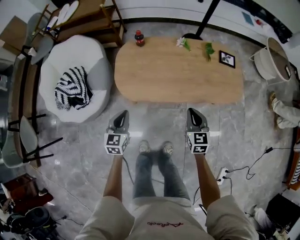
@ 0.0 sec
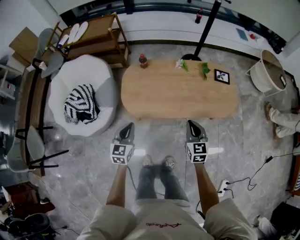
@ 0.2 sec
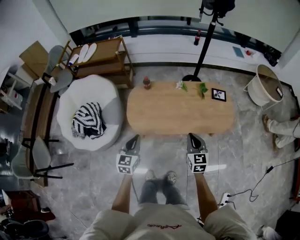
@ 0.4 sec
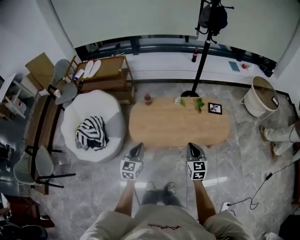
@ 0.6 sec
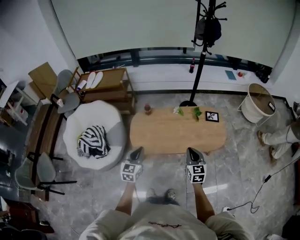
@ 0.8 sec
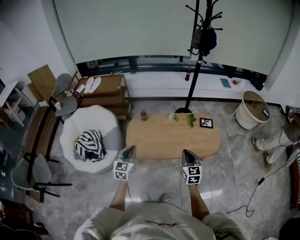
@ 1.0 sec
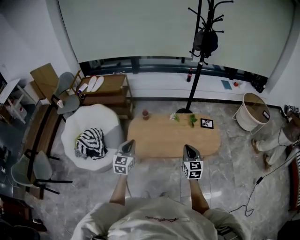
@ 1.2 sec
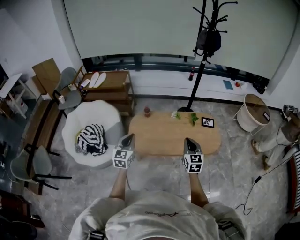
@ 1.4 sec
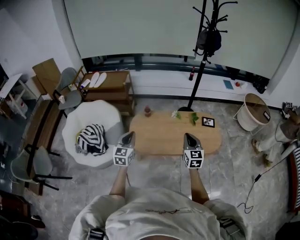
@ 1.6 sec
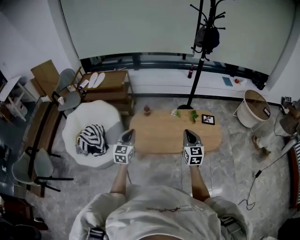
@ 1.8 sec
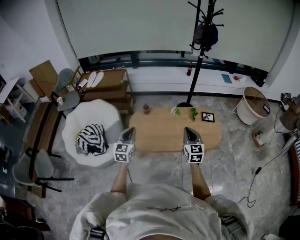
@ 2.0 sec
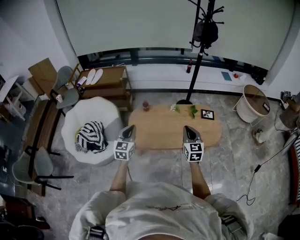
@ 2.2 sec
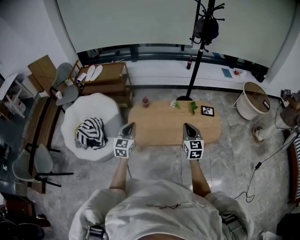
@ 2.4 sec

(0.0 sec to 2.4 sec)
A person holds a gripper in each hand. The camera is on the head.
0.0 sec - 1.2 sec: The grippers both shift upward by some 30 cm.
1.2 sec - 2.4 sec: The right gripper changes place by approximately 5 cm.

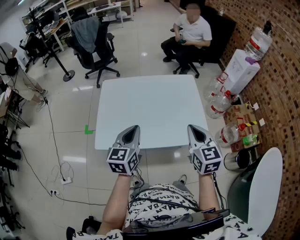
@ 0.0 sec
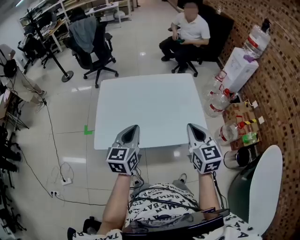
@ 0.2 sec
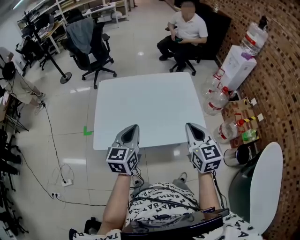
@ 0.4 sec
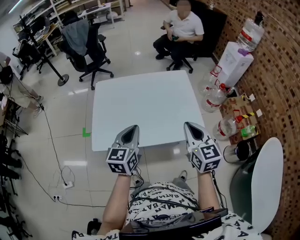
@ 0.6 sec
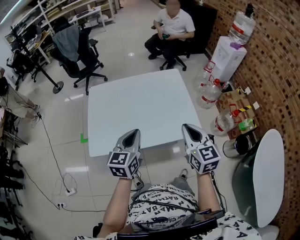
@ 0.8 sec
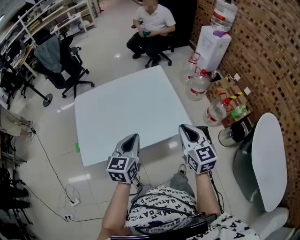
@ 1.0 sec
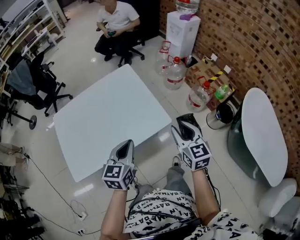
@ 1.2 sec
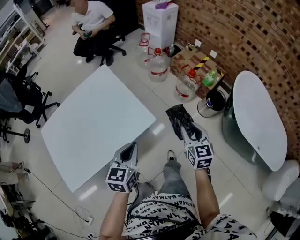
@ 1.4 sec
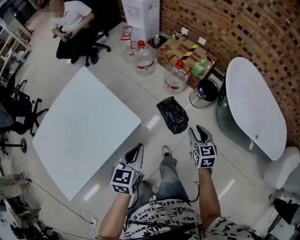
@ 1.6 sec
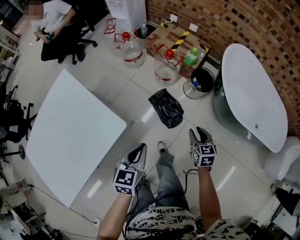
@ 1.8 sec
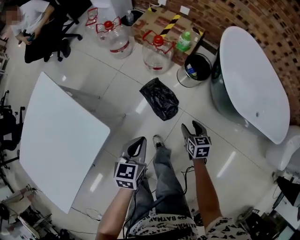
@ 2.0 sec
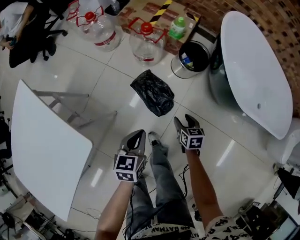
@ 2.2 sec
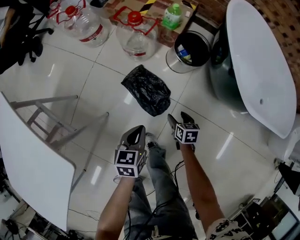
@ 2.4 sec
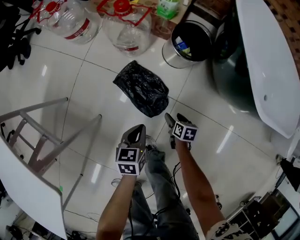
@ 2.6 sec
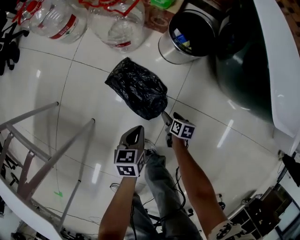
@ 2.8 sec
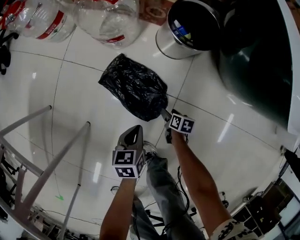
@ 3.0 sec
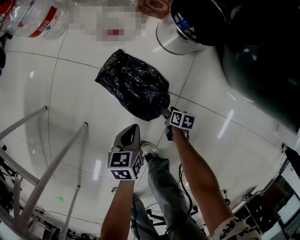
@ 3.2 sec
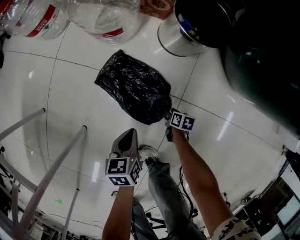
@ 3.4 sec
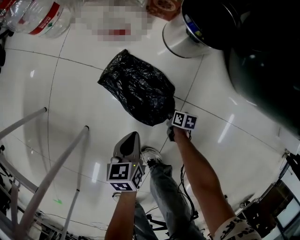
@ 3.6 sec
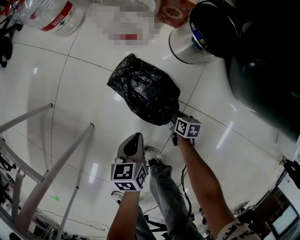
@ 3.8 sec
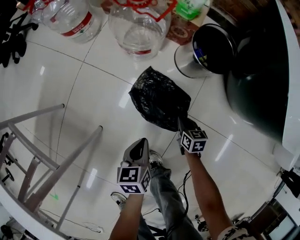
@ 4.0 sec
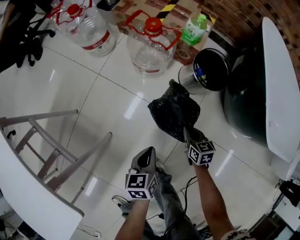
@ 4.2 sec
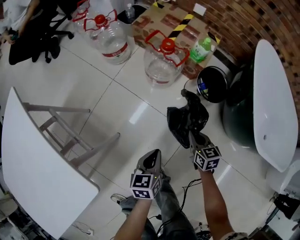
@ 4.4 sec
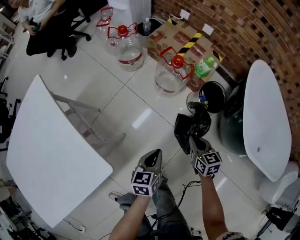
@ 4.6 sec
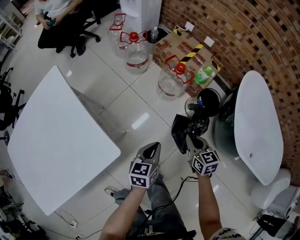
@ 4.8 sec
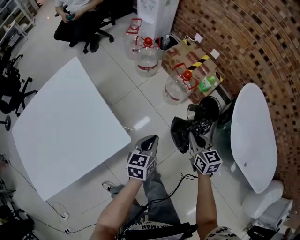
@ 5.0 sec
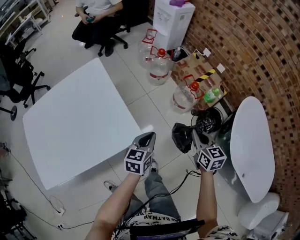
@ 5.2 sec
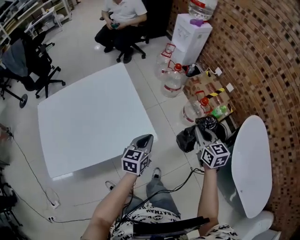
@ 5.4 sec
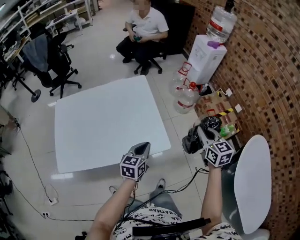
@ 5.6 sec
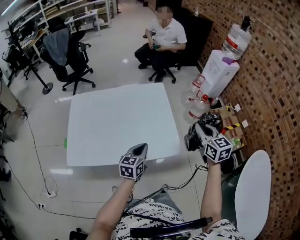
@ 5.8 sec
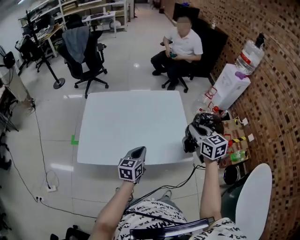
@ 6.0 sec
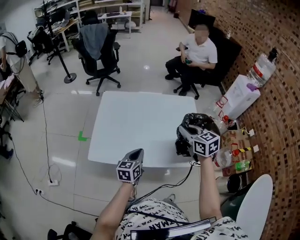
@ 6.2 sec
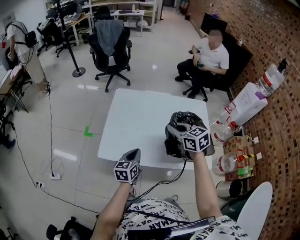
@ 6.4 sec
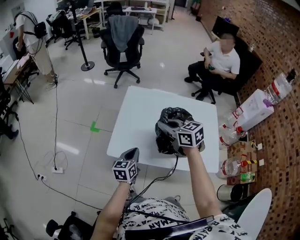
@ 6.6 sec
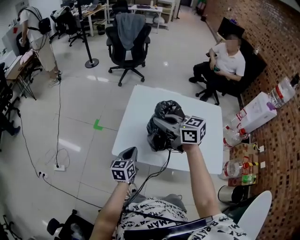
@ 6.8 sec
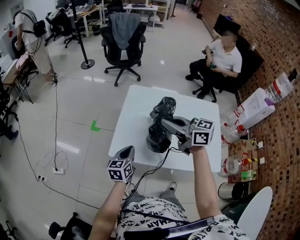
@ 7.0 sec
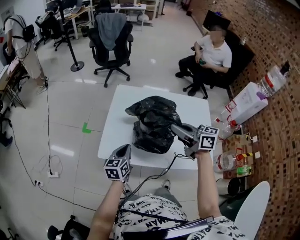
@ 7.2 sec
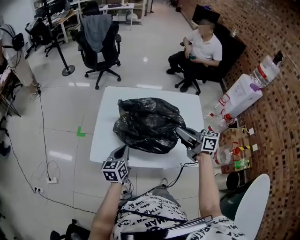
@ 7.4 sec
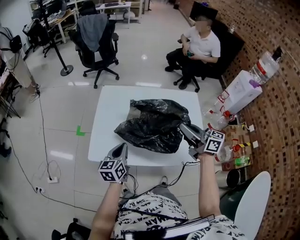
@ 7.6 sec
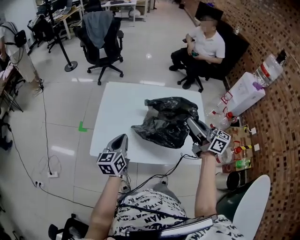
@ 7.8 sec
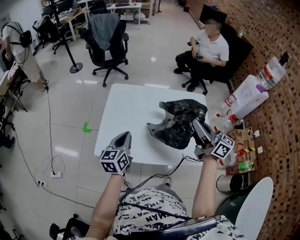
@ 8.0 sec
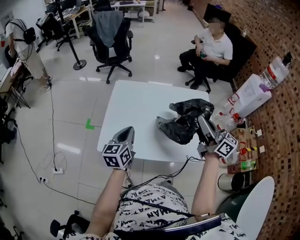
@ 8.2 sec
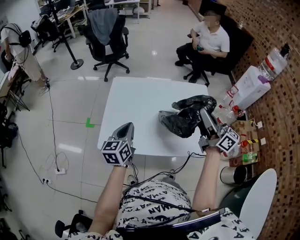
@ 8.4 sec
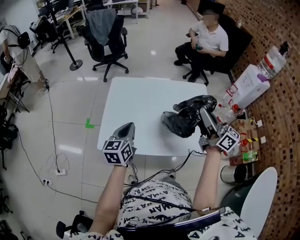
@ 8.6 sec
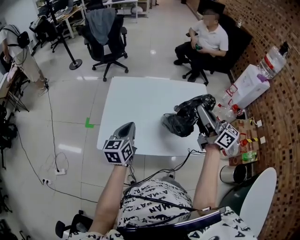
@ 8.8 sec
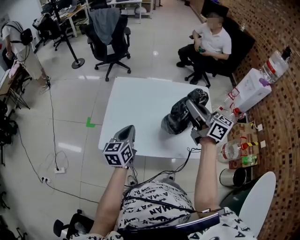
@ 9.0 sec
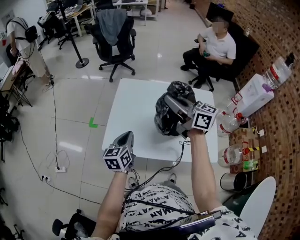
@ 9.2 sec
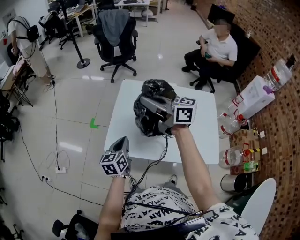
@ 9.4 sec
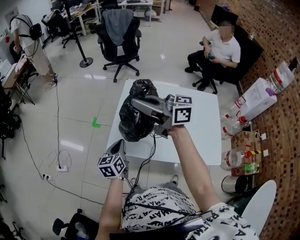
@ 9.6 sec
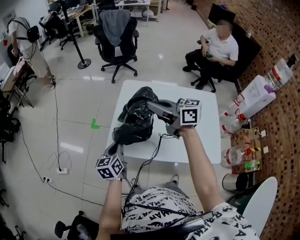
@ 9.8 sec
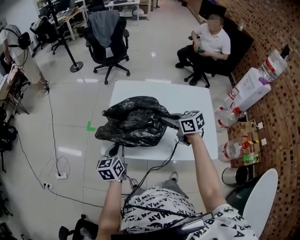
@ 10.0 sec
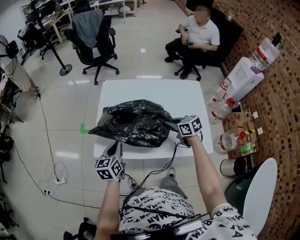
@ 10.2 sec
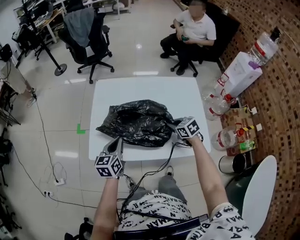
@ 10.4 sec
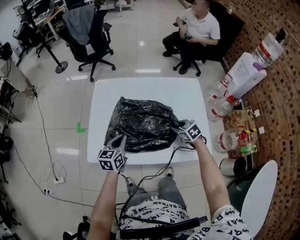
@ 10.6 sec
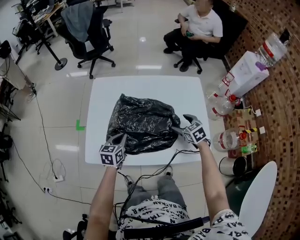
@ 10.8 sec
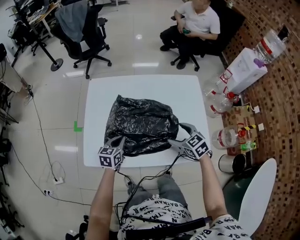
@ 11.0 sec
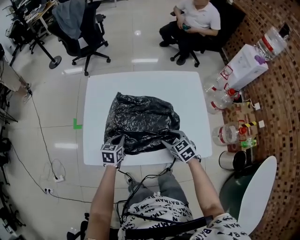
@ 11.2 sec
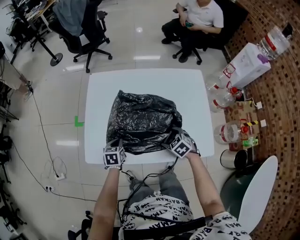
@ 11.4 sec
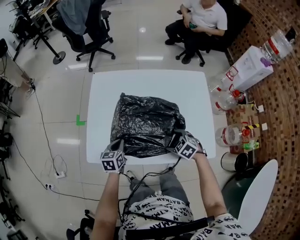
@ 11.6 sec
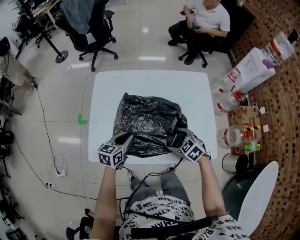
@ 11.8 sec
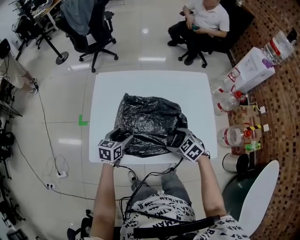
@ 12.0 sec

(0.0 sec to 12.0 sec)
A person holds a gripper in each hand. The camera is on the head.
0.0 sec - 1.6 sec: The left gripper moves approximately 40 cm, and rotates approximately 50 degrees, while the right gripper changes place by roughly 50 cm, changes its angle by roughly 50 degrees, and opens.
1.6 sec - 3.0 sec: The grippers both shift downward by roughly 60 cm. The right gripper twists some 60 degrees clockwise, seen from behind, and opens its fingers; the left gripper changes its angle by approximately 30 degrees.
3.0 sec - 4.4 sec: The right gripper shifts about 35 cm upward, twists approximately 50 degrees counterclockwise, seen from behind, and closes its fingers; the left gripper moves upward, some 20 cm, and turns by about 20 degrees.
4.4 sec - 6.0 sec: Both grippers are carried roughly 50 cm. The right gripper is displaced upward by some 50 cm, and turns by approximately 60 degrees, while the left gripper swivels some 50 degrees.
6.0 sec - 7.6 sec: The left gripper moves approximately 20 cm, while the right gripper goes up and down, roughly 10 cm each way, reversing 2 times, and turns by some 50 degrees.
7.6 sec - 9.0 sec: The left gripper changes place by about 5 cm; the right gripper heads upward, covering approximately 5 cm.
9.0 sec - 10.4 sec: The left gripper heads downward, covering some 5 cm, and reaches some 15 cm to the left, then returns. The right gripper heads downward, covering some 30 cm, and angles its fingers downward, by about 50 degrees.
10.4 sec - 12.0 sec: The right gripper goes up and down, about 10 cm each way, reversing 3 times, and opens up, while the left gripper is displaced downward and forward by some 10 cm, turns by about 20 degrees, and opens.

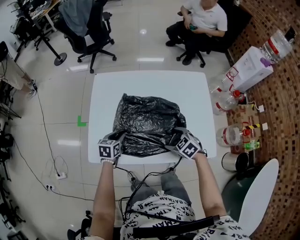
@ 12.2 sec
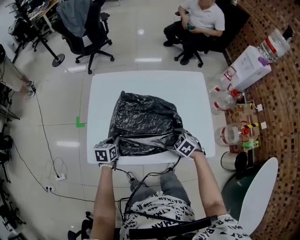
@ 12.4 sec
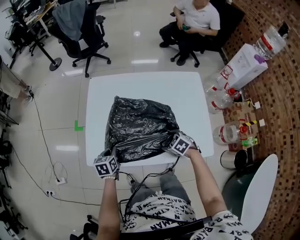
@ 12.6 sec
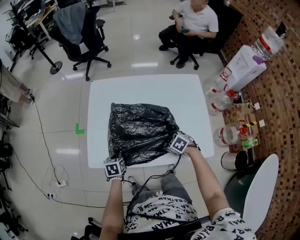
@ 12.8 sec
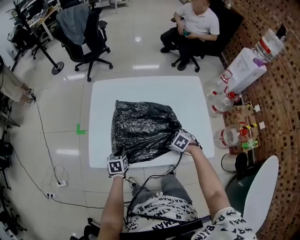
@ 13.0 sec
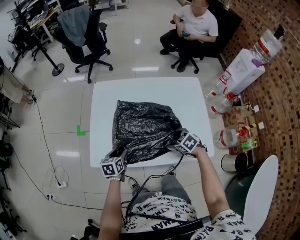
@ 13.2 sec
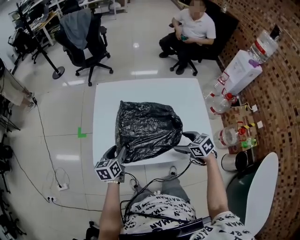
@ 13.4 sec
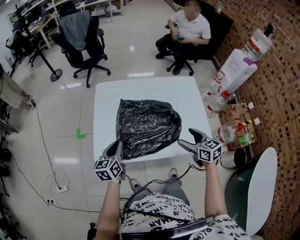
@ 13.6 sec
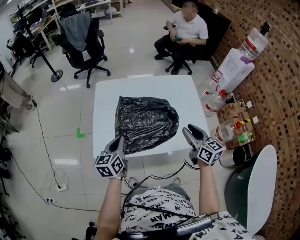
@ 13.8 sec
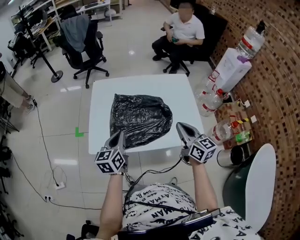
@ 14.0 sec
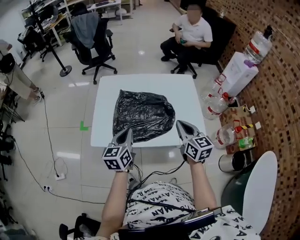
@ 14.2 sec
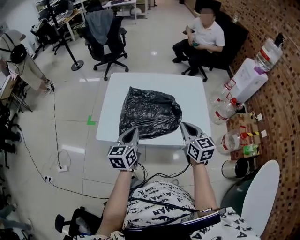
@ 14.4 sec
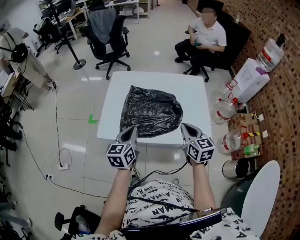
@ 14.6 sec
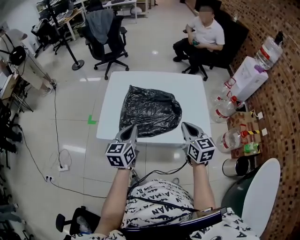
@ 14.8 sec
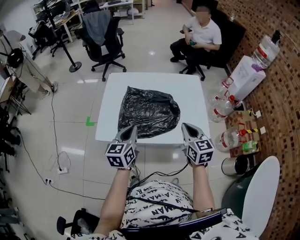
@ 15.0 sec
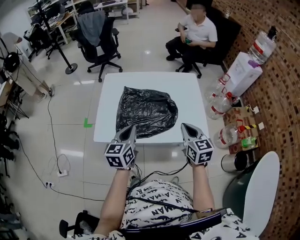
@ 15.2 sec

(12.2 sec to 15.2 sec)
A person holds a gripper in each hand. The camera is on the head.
12.2 sec - 13.8 sec: The right gripper travels upward by roughly 20 cm, tips its fingers upward by some 40 degrees, and closes up; the left gripper travels upward and backward by some 20 cm, changes its angle by approximately 30 degrees, and closes.
13.8 sec - 15.2 sec: The left gripper moves to the right, backward and upward, approximately 10 cm.

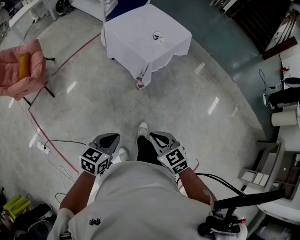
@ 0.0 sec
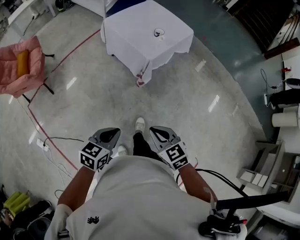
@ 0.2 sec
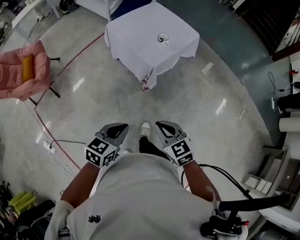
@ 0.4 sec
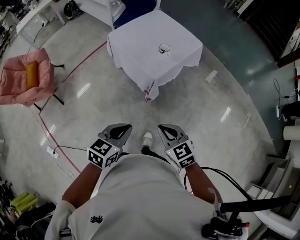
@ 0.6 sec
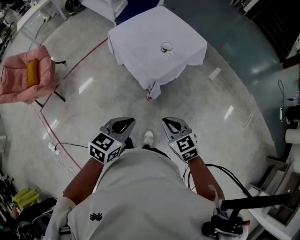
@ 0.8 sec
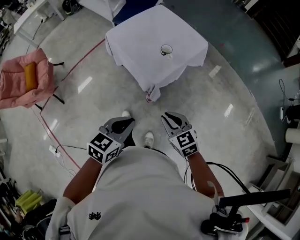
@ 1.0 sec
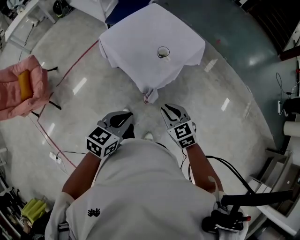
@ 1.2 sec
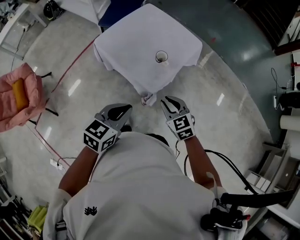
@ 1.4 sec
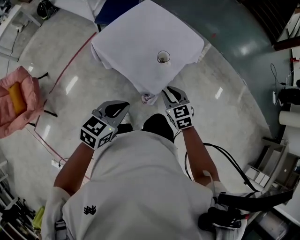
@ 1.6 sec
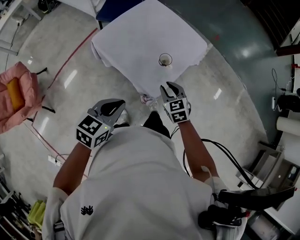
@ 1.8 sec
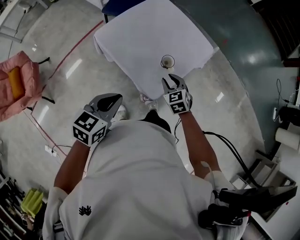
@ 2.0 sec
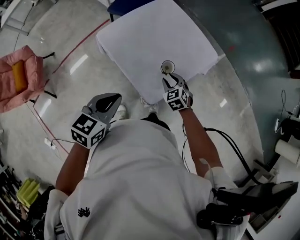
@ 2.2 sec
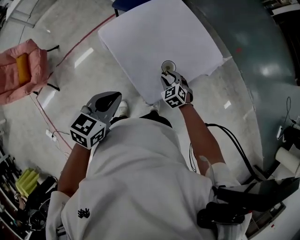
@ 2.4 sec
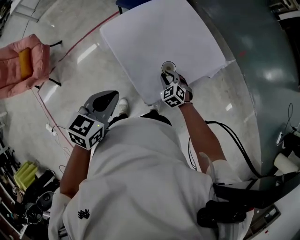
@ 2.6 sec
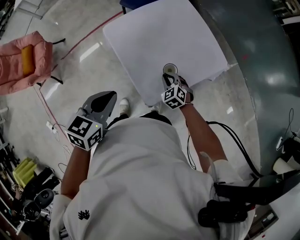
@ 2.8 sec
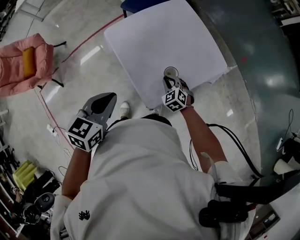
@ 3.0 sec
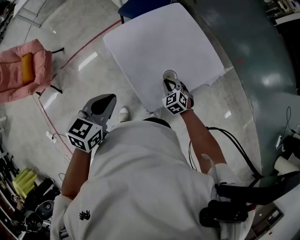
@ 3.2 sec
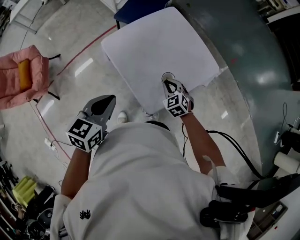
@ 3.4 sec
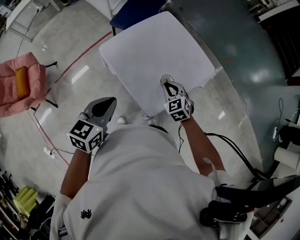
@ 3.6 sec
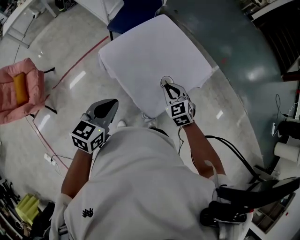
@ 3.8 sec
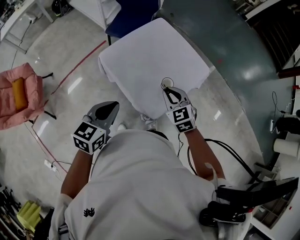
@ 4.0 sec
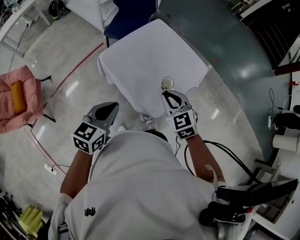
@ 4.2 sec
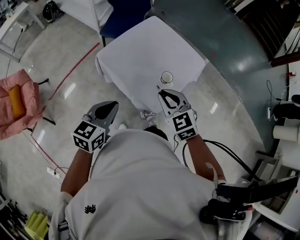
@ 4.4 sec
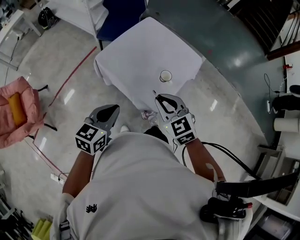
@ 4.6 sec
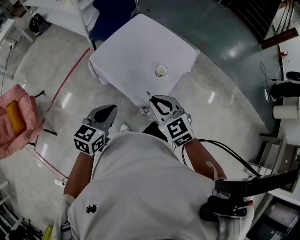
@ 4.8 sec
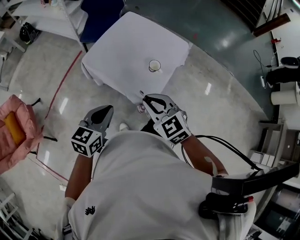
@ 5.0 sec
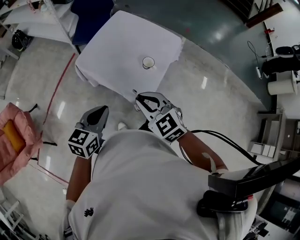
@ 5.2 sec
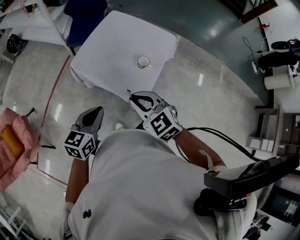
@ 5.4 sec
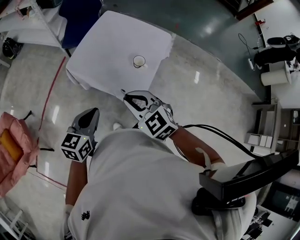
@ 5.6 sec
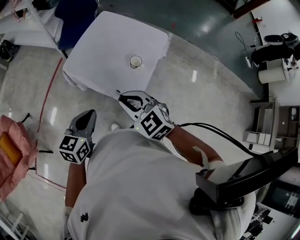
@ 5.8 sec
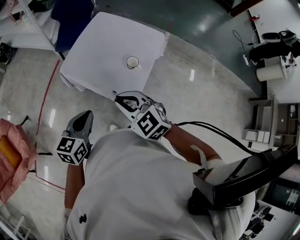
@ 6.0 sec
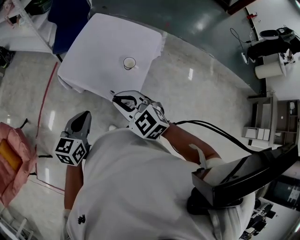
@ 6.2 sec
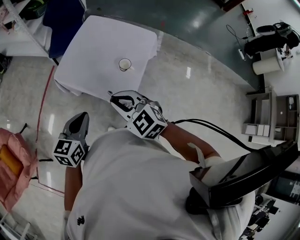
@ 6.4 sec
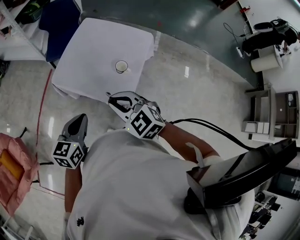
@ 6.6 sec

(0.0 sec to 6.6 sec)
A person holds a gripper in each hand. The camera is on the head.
0.0 sec - 1.6 sec: The pair of grippers is taken forward, roughly 50 cm. The right gripper opens.
1.6 sec - 3.2 sec: The left gripper ends up approximately 15 cm from where it was, and changes its angle by roughly 30 degrees. The right gripper moves roughly 25 cm, and changes its angle by some 30 degrees.
3.2 sec - 5.0 sec: The right gripper heads upward, backward and to the left, covering some 35 cm, and rotates roughly 20 degrees. The left gripper travels backward and to the left by some 15 cm, and swivels some 30 degrees.
5.0 sec - 6.6 sec: The grippers move only a little.
